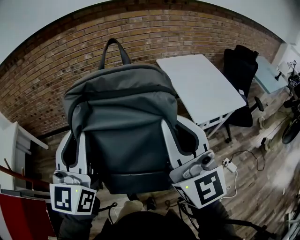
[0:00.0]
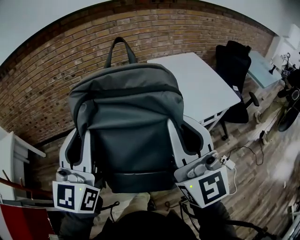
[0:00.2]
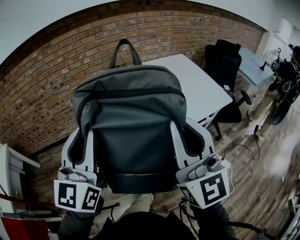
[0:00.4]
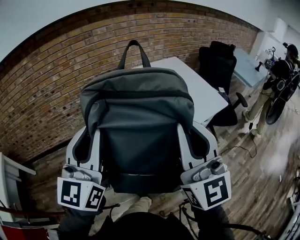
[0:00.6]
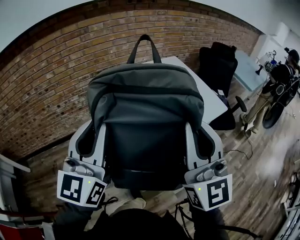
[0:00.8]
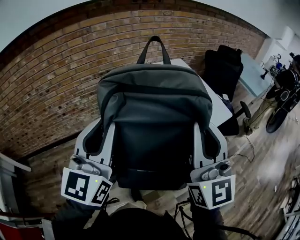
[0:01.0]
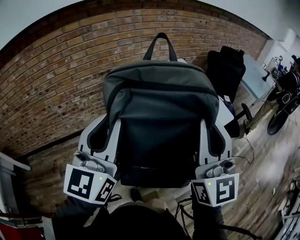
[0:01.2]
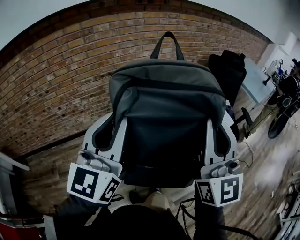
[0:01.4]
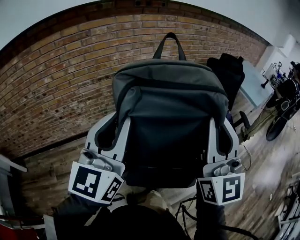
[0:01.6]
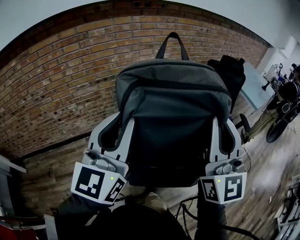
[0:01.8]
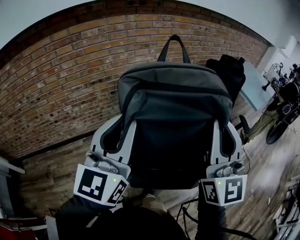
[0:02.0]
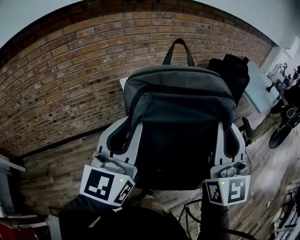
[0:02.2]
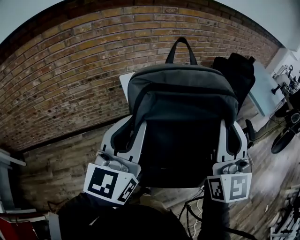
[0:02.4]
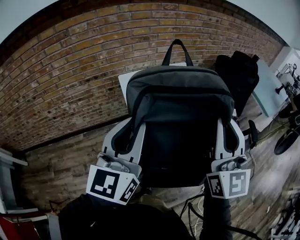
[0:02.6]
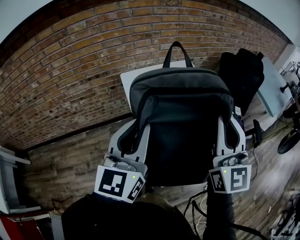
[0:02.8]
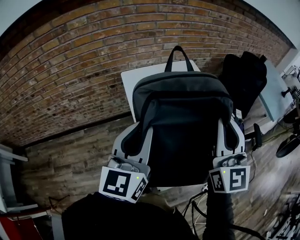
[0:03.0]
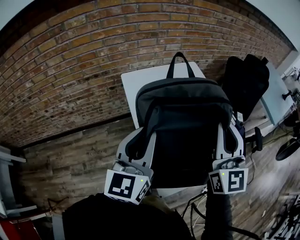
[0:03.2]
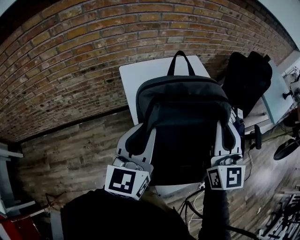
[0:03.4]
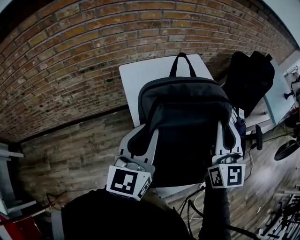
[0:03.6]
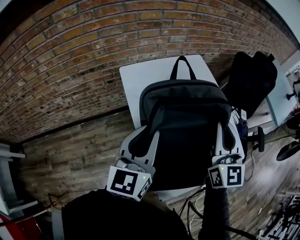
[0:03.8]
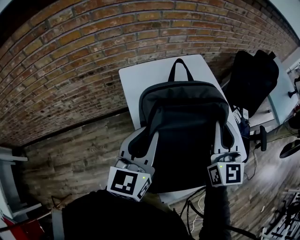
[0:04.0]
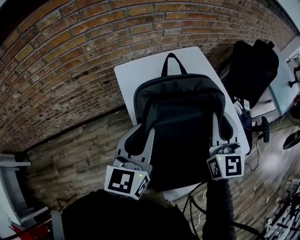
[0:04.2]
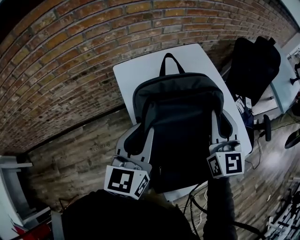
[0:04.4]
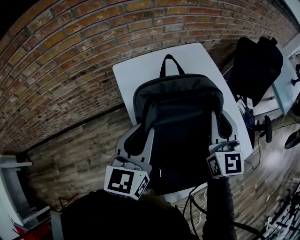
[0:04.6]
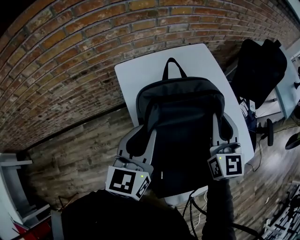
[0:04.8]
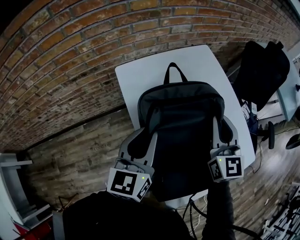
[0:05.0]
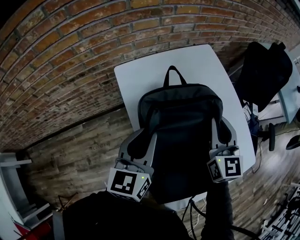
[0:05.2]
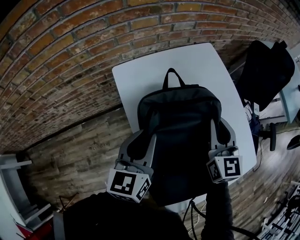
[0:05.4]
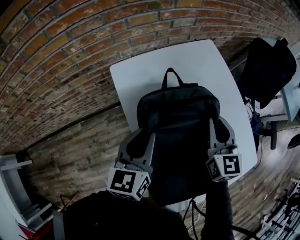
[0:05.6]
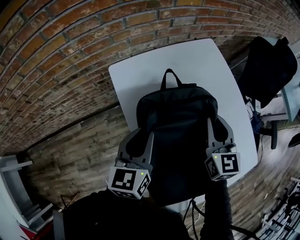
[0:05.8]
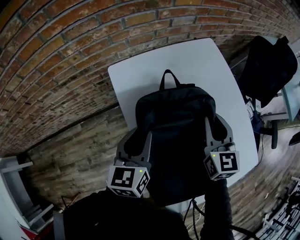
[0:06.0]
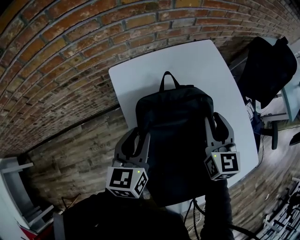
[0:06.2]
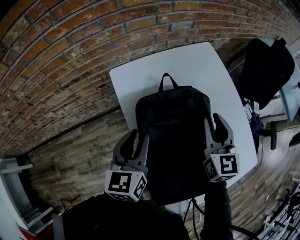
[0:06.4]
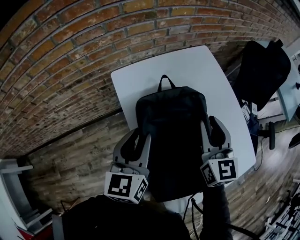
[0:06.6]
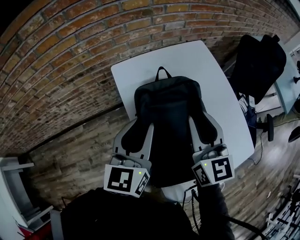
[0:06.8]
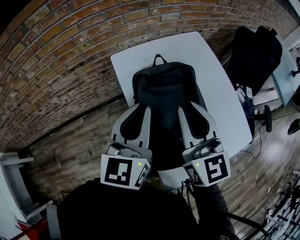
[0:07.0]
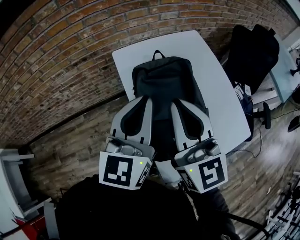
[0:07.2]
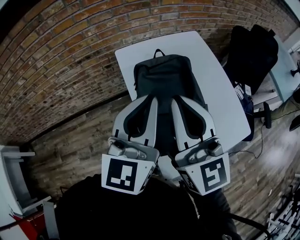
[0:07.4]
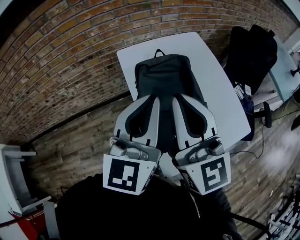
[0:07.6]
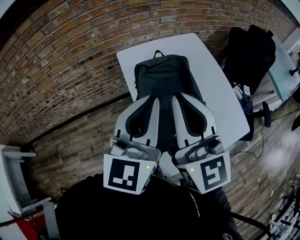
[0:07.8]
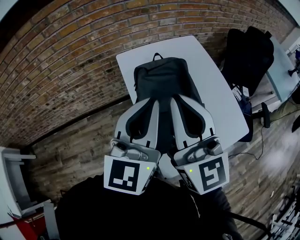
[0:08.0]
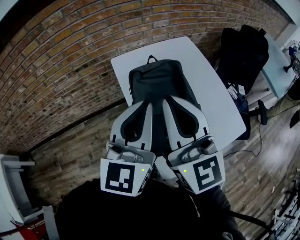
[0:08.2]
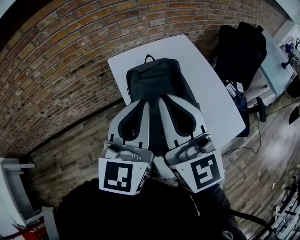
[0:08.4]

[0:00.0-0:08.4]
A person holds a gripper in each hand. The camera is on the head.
0:00.0 to 0:01.4: Both grippers travel together forward and to the right, roughly 35 cm. The left gripper changes its angle by approximately 20 degrees. The right gripper rotates approximately 30 degrees.
0:01.4 to 0:02.8: Both grippers travel together forward and to the right, approximately 30 cm.
0:02.8 to 0:04.2: The grippers both shift forward and downward by about 20 cm.
0:04.2 to 0:05.6: Both grippers move downward and forward, some 15 cm.
0:05.6 to 0:07.0: The right gripper moves upward, backward and to the left, approximately 20 cm; the left gripper shifts roughly 15 cm upward and backward.
0:07.0 to 0:08.4: The grippers both shift backward and upward by approximately 15 cm.

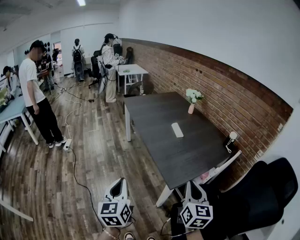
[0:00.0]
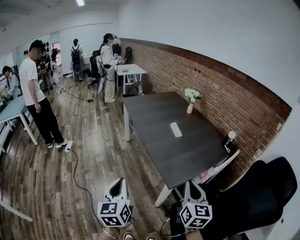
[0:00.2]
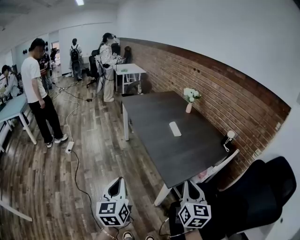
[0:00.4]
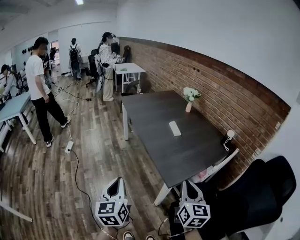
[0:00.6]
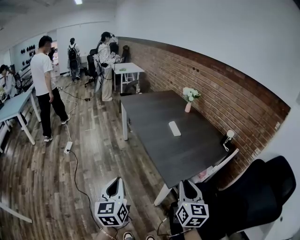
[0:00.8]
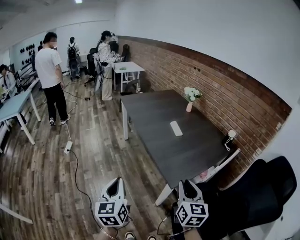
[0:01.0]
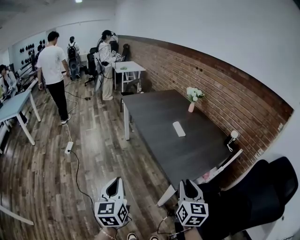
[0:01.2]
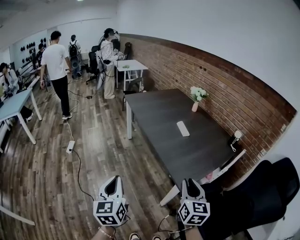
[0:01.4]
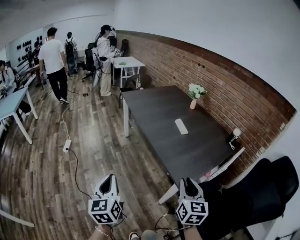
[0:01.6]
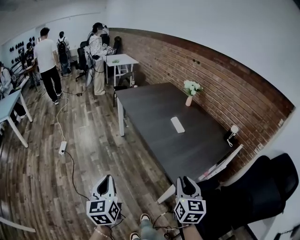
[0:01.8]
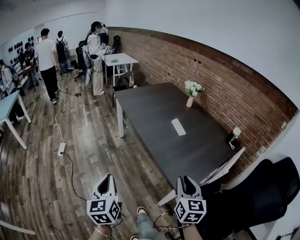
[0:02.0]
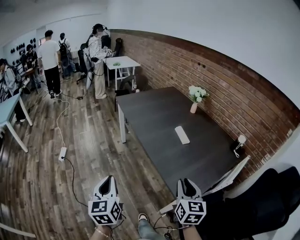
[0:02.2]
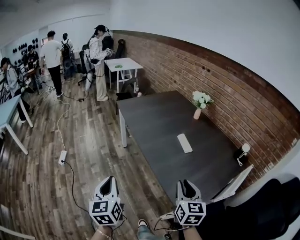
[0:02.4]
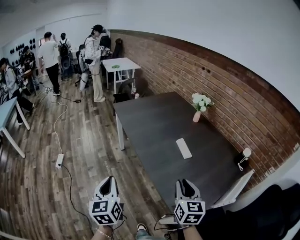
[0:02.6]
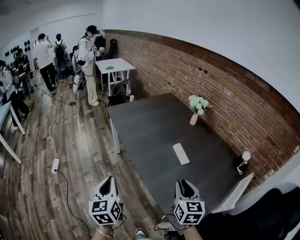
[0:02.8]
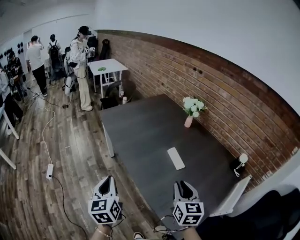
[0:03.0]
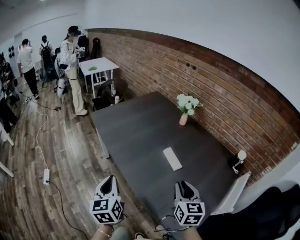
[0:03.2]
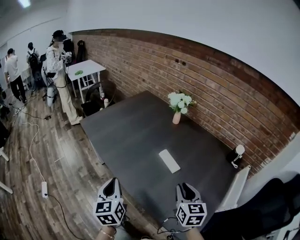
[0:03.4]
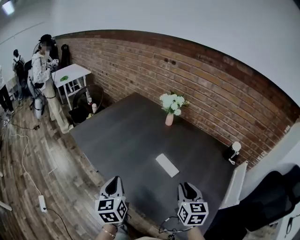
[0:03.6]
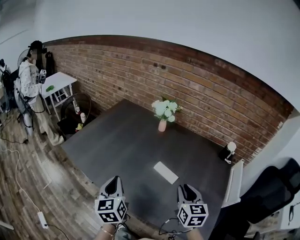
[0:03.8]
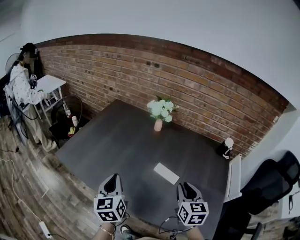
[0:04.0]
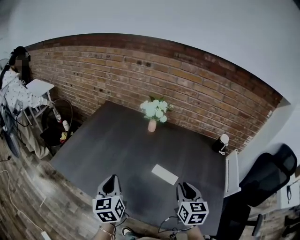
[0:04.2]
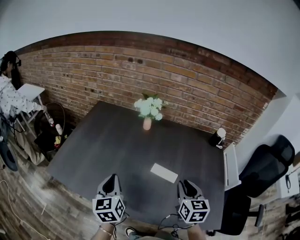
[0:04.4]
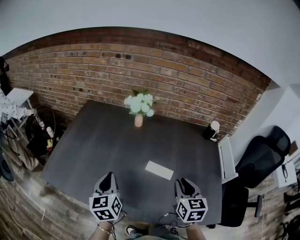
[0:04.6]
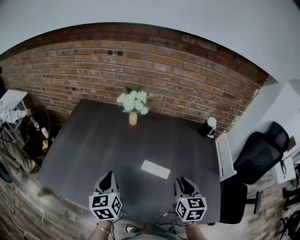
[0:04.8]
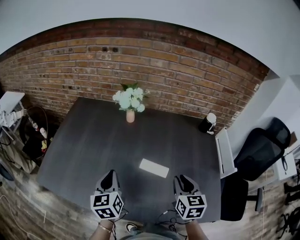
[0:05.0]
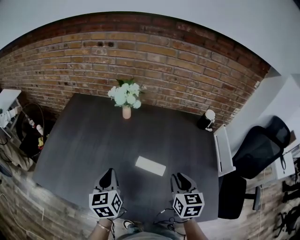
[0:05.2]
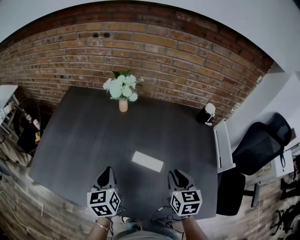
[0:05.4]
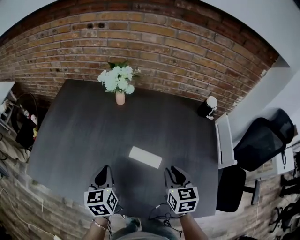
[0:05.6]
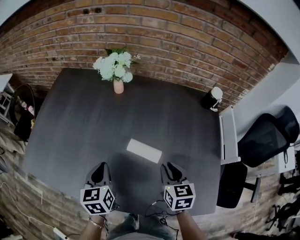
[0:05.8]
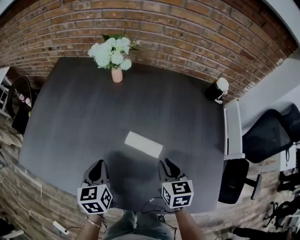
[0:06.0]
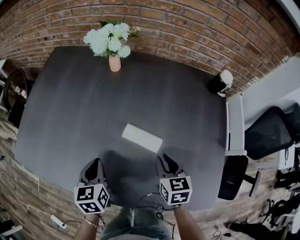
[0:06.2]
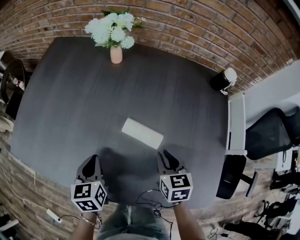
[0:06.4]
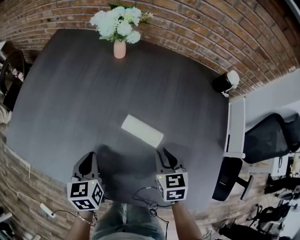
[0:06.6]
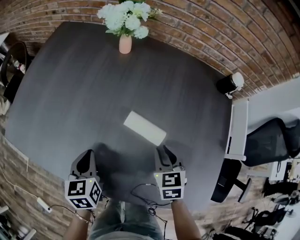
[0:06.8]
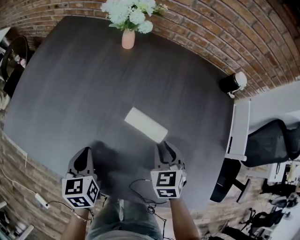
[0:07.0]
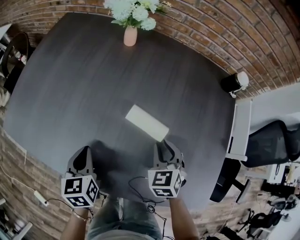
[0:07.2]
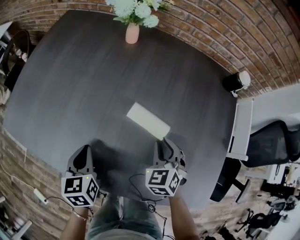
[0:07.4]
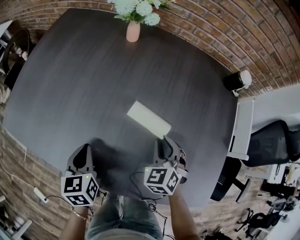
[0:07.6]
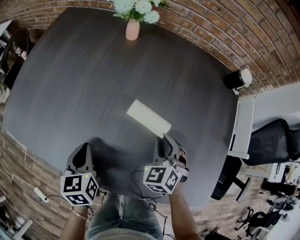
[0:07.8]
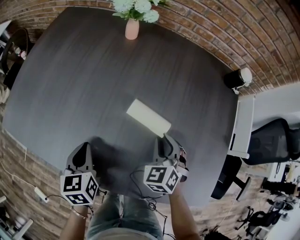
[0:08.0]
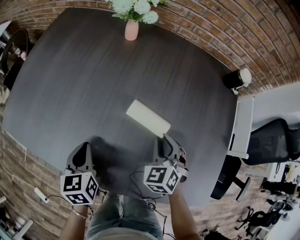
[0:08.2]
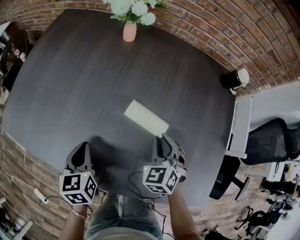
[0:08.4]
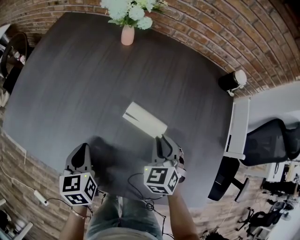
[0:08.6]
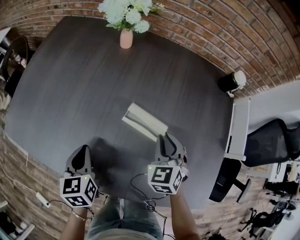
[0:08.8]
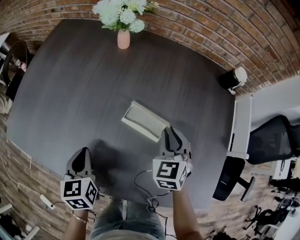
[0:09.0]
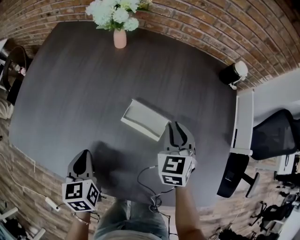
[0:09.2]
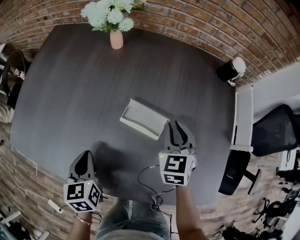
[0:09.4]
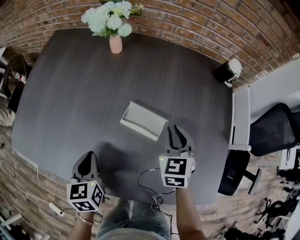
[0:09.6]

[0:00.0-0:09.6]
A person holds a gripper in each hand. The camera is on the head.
0:00.0 to 0:01.6: The left gripper shifts roughly 15 cm to the left and forward. The right gripper shifts roughly 10 cm to the left, and opens up.
0:01.6 to 0:03.2: Both grippers travel together forward, approximately 40 cm.
0:03.2 to 0:04.8: The right gripper ends up approximately 15 cm from where it was, and changes its angle by approximately 40 degrees; the left gripper changes place by roughly 35 cm, and rotates approximately 40 degrees.
0:04.8 to 0:06.4: The two grippers go roughly 15 cm downward. The left gripper changes its angle by some 20 degrees.
0:06.4 to 0:08.0: The right gripper twists approximately 40 degrees counterclockwise, seen from behind.
0:08.0 to 0:09.6: The right gripper shifts about 10 cm upward and to the right, and turns by about 30 degrees.

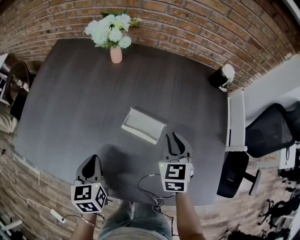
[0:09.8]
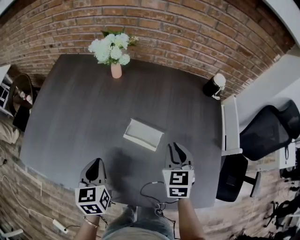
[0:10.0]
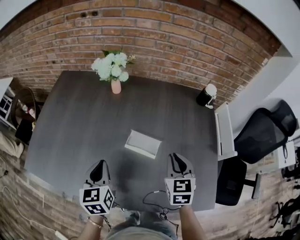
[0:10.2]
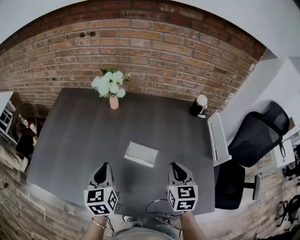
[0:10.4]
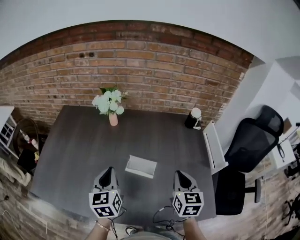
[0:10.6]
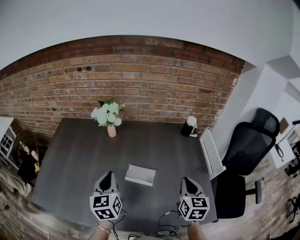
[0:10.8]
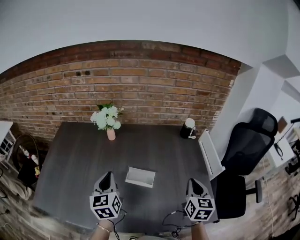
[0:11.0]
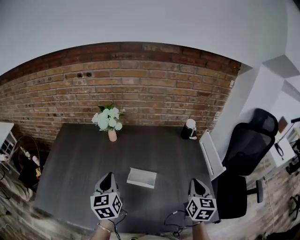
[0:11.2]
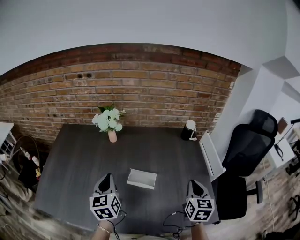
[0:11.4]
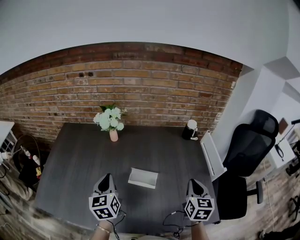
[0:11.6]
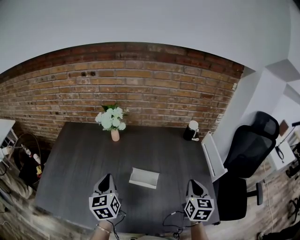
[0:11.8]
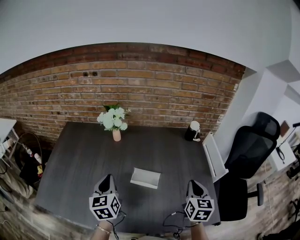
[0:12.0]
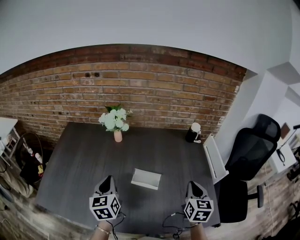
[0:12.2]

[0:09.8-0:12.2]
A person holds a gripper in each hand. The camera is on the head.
0:09.8 to 0:11.0: The right gripper shifts roughly 20 cm upward, to the right and backward, and changes its angle by approximately 30 degrees, while the left gripper goes roughly 20 cm upward and forward, and changes its angle by some 20 degrees.
0:11.0 to 0:12.2: The grippers make only small movements.

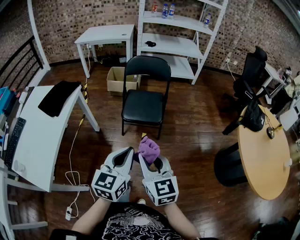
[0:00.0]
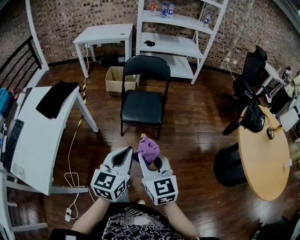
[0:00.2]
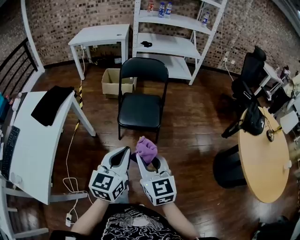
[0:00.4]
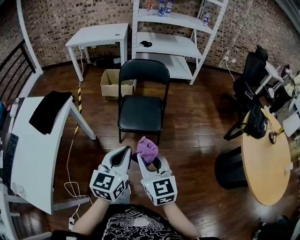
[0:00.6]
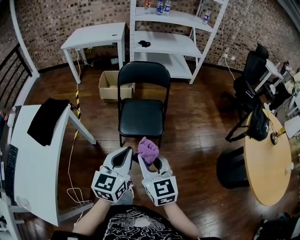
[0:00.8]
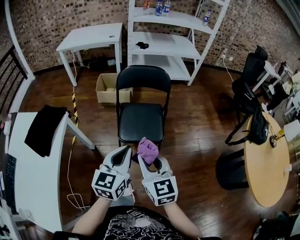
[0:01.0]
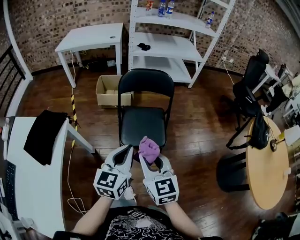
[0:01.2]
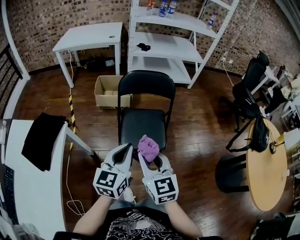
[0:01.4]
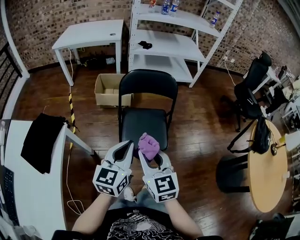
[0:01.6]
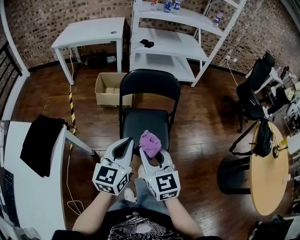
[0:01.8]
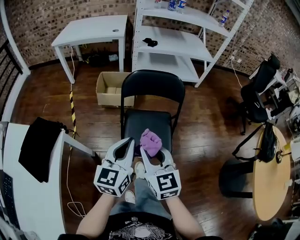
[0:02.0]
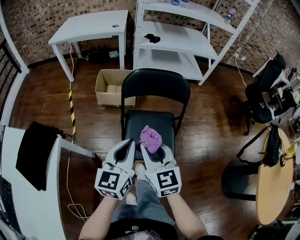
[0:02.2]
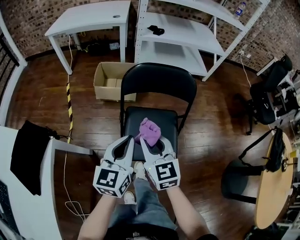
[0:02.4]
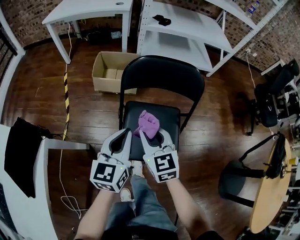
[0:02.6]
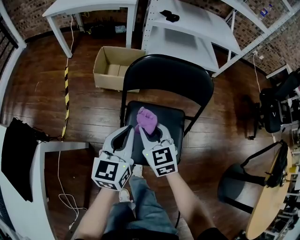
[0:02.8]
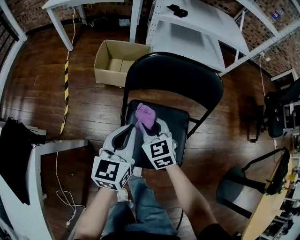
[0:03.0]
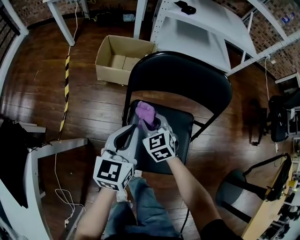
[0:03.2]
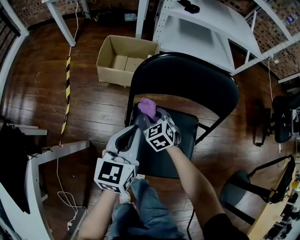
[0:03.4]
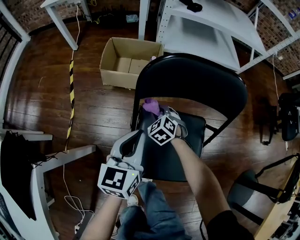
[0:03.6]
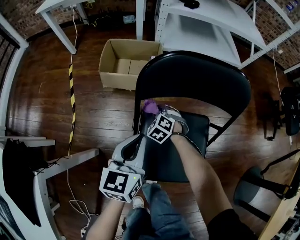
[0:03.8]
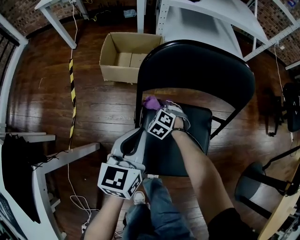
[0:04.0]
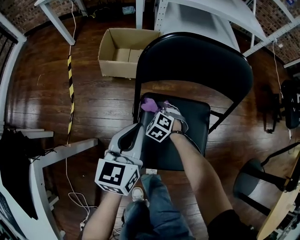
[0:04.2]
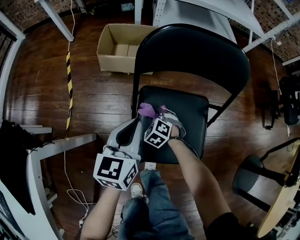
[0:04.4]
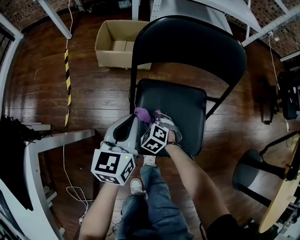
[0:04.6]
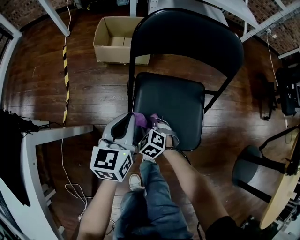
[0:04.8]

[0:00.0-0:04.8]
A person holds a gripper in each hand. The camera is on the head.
0:00.0 to 0:01.6: Both grippers travel together forward, roughly 35 cm.
0:01.6 to 0:03.2: The two grippers go about 50 cm forward and downward. The right gripper turns by approximately 30 degrees.
0:03.2 to 0:04.8: The left gripper is displaced downward and backward by some 10 cm. The right gripper goes some 25 cm downward and backward, and changes its angle by about 30 degrees.
